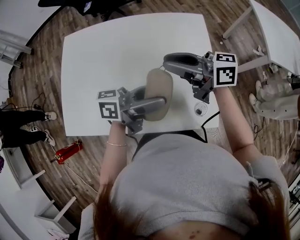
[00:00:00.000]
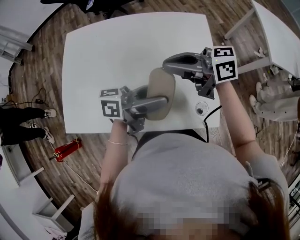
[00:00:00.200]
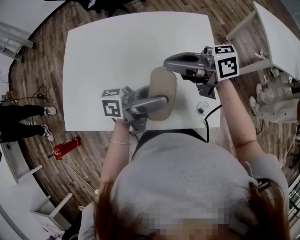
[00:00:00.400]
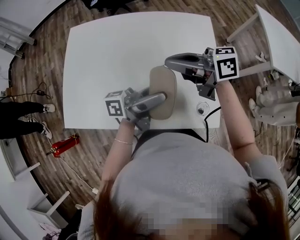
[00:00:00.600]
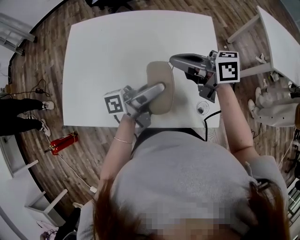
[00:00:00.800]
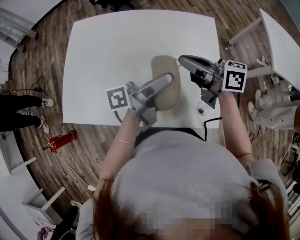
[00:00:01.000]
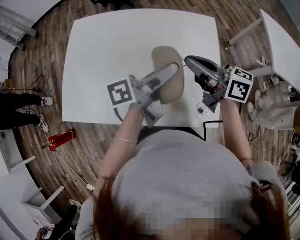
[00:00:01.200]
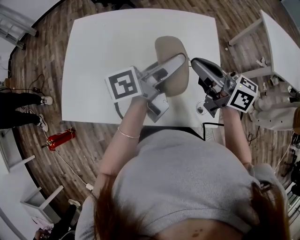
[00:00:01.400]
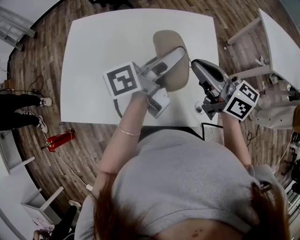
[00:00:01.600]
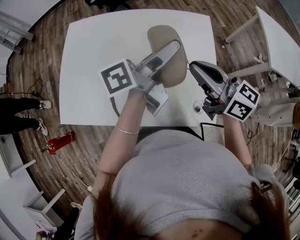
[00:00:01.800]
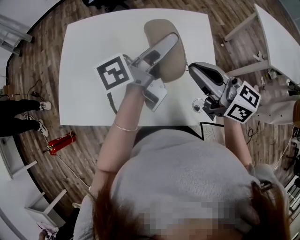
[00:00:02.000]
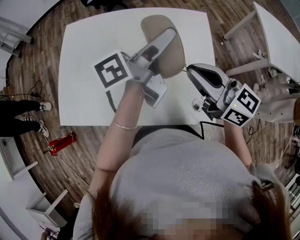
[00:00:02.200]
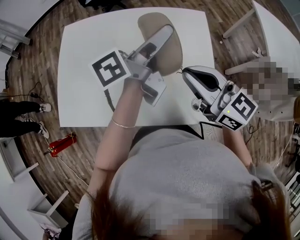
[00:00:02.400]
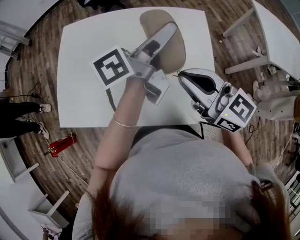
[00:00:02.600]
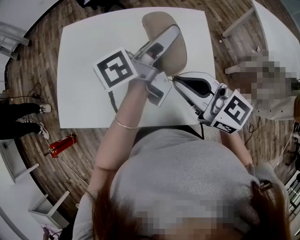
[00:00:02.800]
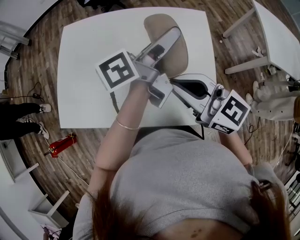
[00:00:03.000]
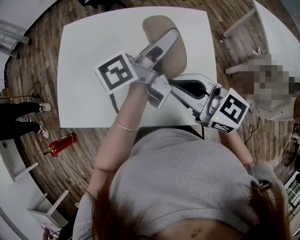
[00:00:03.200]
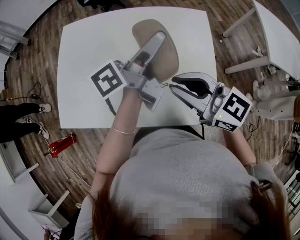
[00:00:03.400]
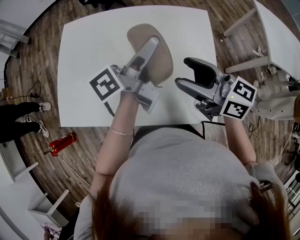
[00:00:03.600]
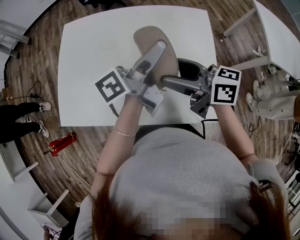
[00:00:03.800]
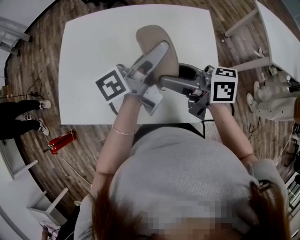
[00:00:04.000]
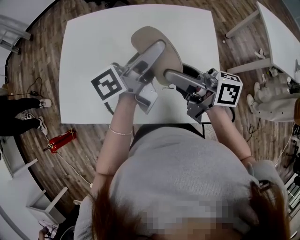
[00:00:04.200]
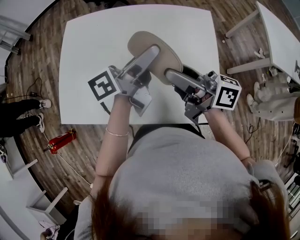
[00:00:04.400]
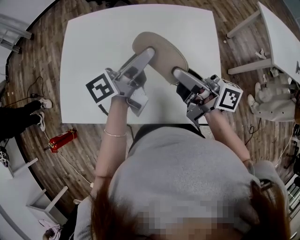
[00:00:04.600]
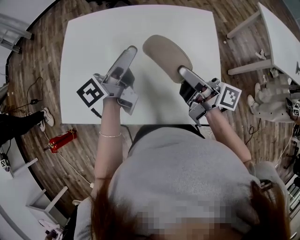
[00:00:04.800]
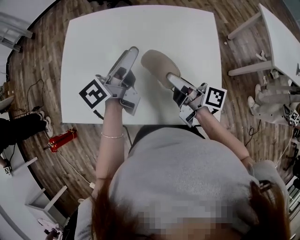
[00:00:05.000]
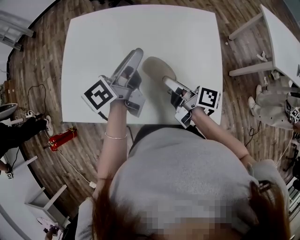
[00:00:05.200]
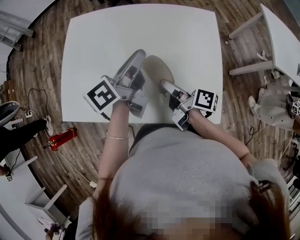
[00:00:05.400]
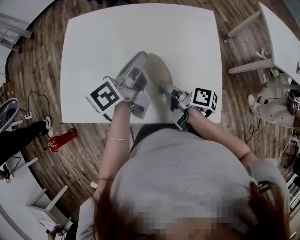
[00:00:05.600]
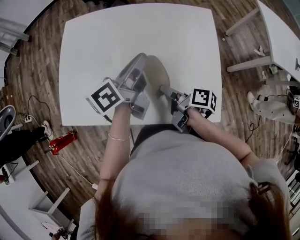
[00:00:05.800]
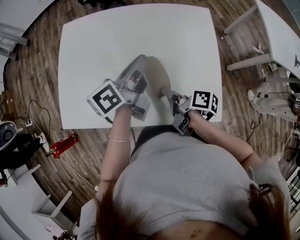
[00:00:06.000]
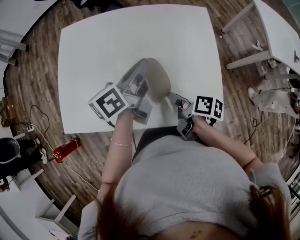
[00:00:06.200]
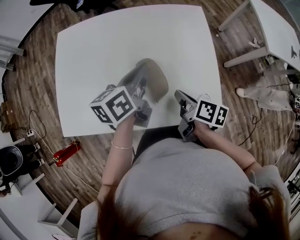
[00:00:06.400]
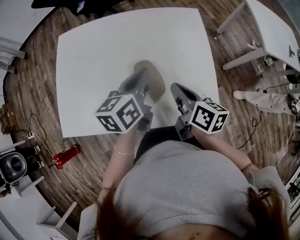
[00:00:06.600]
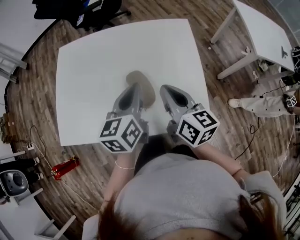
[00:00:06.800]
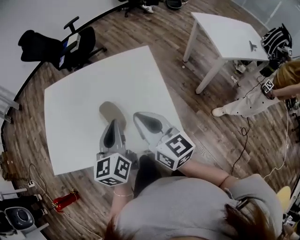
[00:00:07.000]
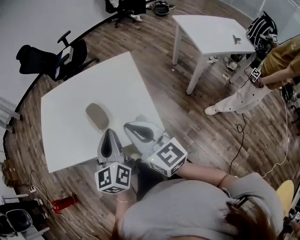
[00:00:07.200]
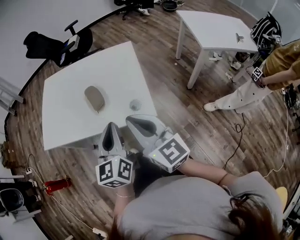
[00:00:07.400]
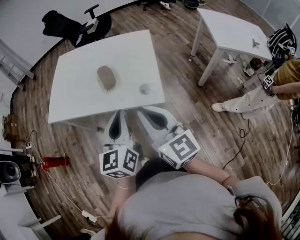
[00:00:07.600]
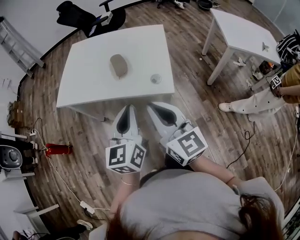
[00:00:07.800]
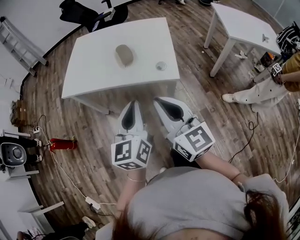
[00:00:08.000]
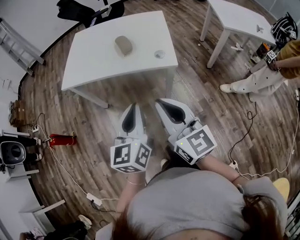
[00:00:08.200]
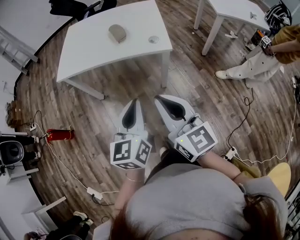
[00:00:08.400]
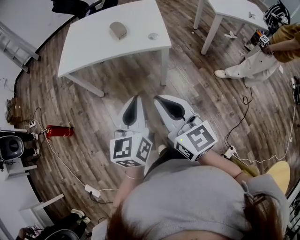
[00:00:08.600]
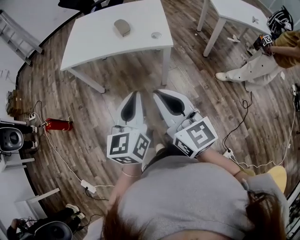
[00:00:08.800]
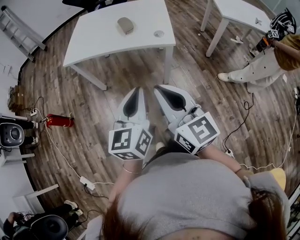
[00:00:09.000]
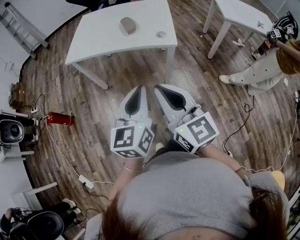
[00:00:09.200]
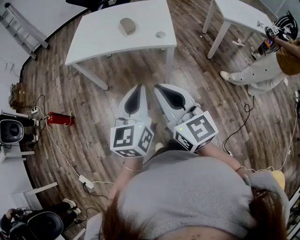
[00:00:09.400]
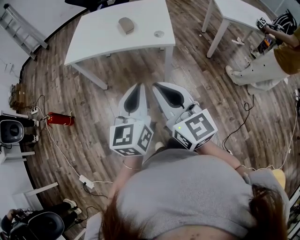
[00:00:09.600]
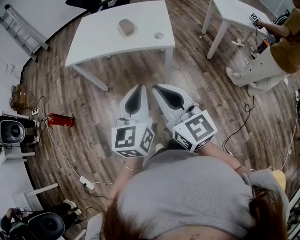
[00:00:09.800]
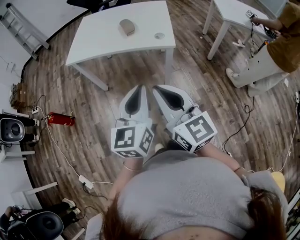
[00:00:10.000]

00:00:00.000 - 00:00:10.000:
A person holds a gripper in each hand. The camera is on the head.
00:00:00.000 - 00:00:01.400: The left gripper moves approximately 10 cm, and swivels about 30 degrees. Meanwhile the right gripper ends up about 5 cm from where it was.
00:00:01.400 - 00:00:02.800: The right gripper goes some 5 cm backward, and rotates roughly 30 degrees, while the left gripper travels forward by approximately 5 cm.
00:00:02.800 - 00:00:04.200: The right gripper rotates around the line of its fingers by some 40 degrees, clockwise from behind, and opens its fingers; the left gripper travels to the left by about 5 cm.
00:00:04.200 - 00:00:05.800: The right gripper is displaced downward by some 20 cm, and tips its fingers downward by roughly 30 degrees. Meanwhile the left gripper shifts some 5 cm downward and to the left, and closes its fingers.
00:00:05.800 - 00:00:07.200: The right gripper moves upward, backward and to the right, approximately 30 cm, rolls counterclockwise, seen from behind, by roughly 70 degrees, and closes. Meanwhile the left gripper shifts approximately 25 cm backward and to the right, and rotates around the line of its fingers by about 40 degrees, clockwise from behind.
00:00:07.200 - 00:00:08.600: Both grippers travel together backward, about 35 cm.
00:00:08.600 - 00:00:10.000: The grippers stay close to where they were, moving slightly.

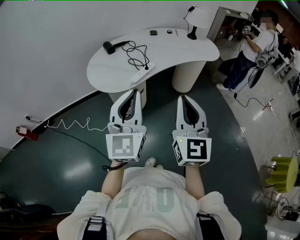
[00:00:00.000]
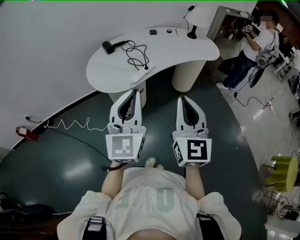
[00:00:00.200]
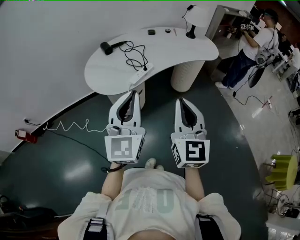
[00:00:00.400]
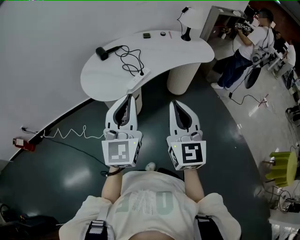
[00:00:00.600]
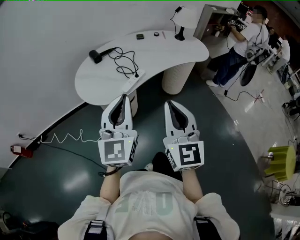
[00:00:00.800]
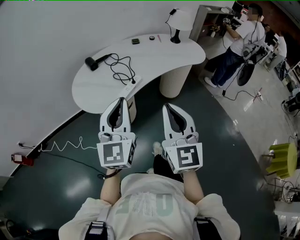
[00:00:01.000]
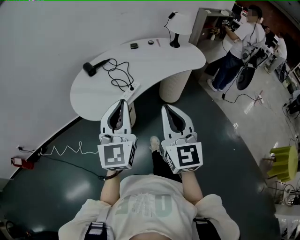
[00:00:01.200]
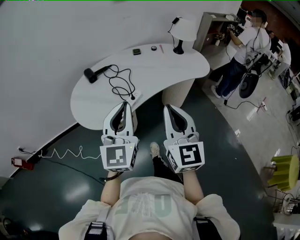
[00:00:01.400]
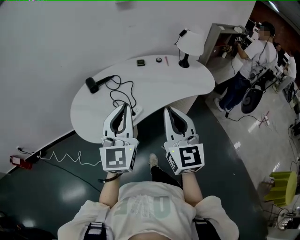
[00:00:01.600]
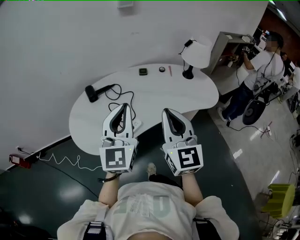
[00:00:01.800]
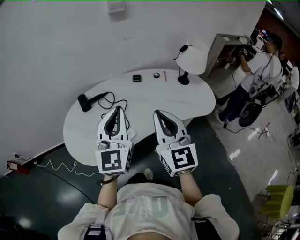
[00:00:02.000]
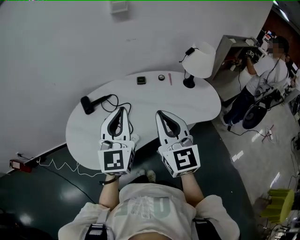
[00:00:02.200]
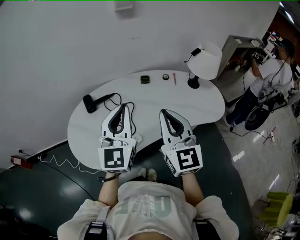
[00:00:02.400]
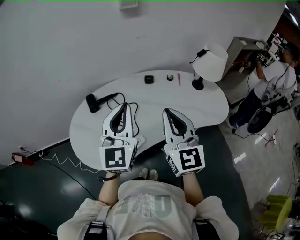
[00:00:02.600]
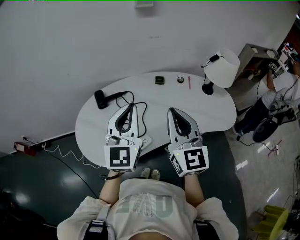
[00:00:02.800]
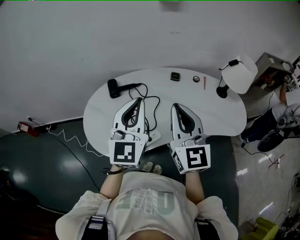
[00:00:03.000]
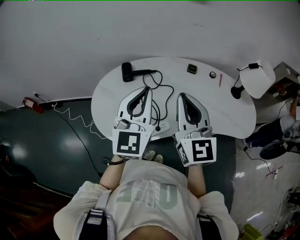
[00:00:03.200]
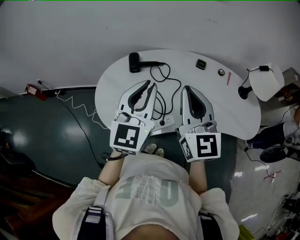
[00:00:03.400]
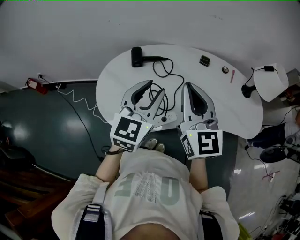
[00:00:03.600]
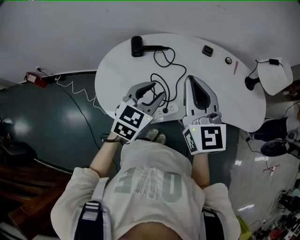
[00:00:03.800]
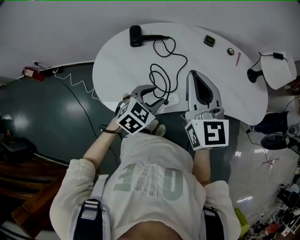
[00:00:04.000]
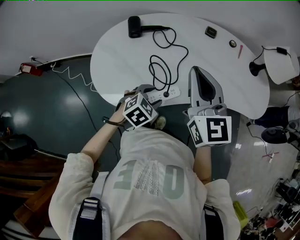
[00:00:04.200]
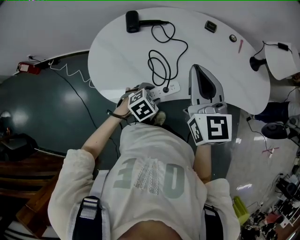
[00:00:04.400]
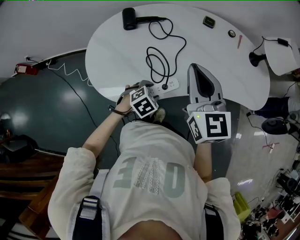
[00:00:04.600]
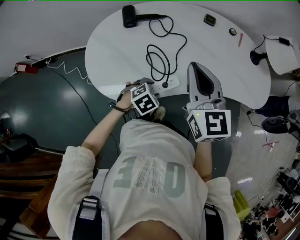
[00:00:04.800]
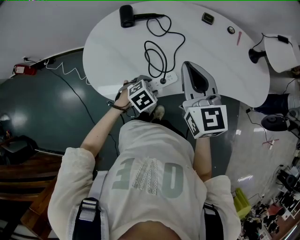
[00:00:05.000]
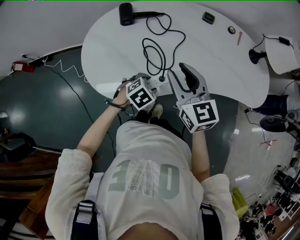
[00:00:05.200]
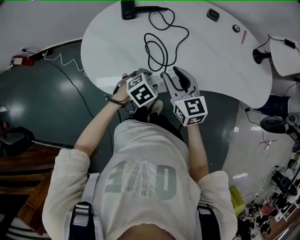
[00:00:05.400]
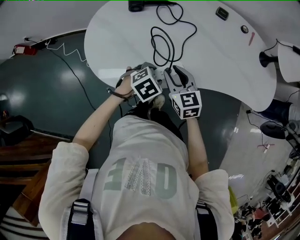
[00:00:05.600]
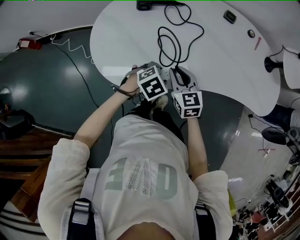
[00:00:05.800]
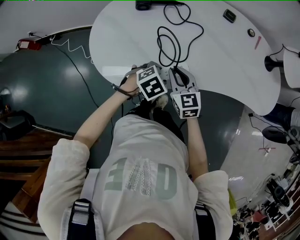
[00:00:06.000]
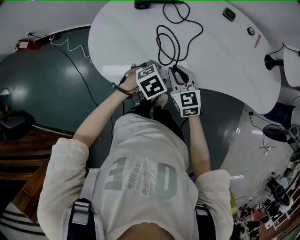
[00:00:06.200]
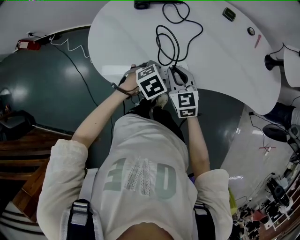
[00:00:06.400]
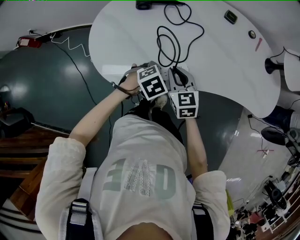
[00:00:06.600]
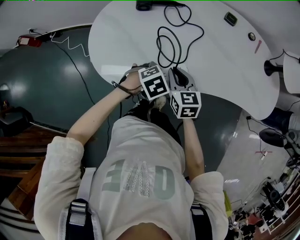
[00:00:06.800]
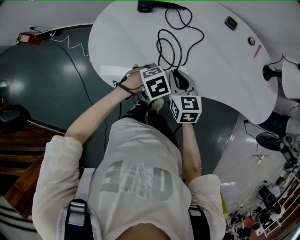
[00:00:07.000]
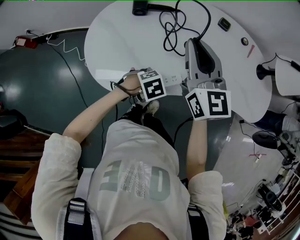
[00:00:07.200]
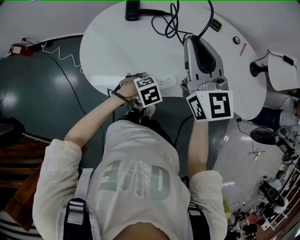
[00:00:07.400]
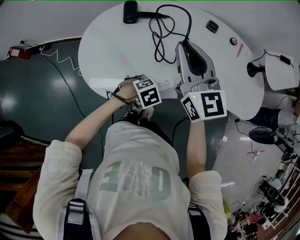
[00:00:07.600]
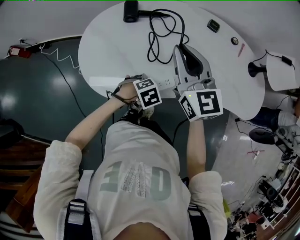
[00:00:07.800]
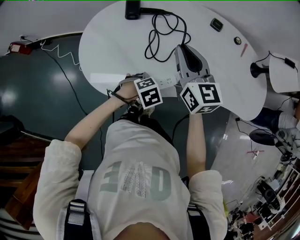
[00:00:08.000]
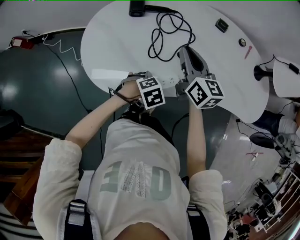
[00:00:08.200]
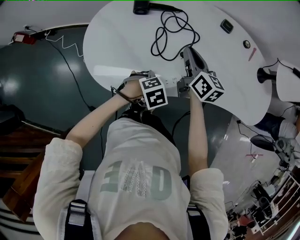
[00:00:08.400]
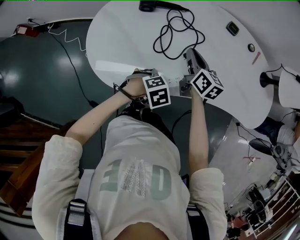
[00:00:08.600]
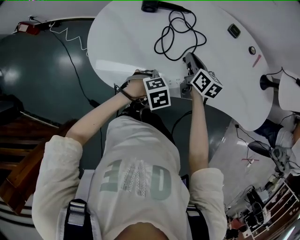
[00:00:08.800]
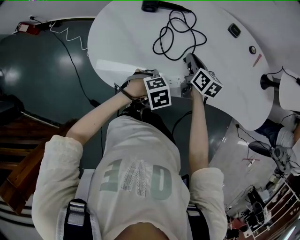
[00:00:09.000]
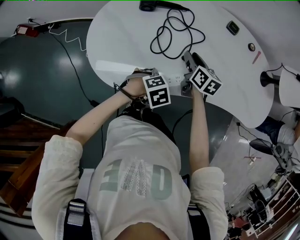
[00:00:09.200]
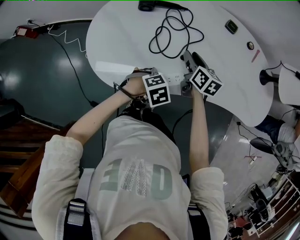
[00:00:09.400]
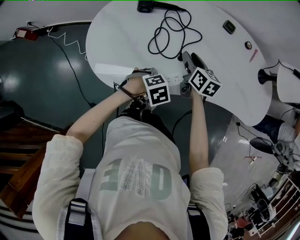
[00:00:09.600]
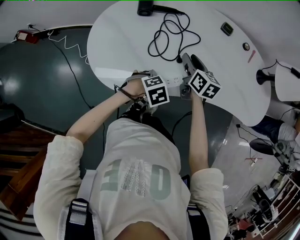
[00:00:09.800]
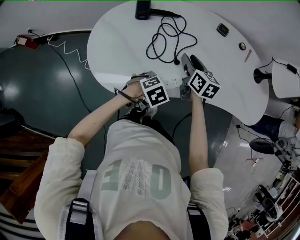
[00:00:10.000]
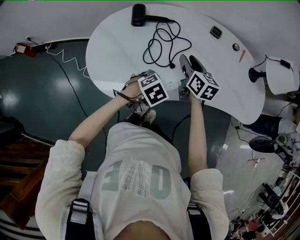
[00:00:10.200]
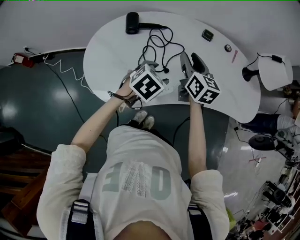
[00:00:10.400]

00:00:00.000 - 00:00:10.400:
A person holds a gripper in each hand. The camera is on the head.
00:00:00.000 - 00:00:01.400: Both grippers move forward, approximately 15 cm.
00:00:01.400 - 00:00:03.000: The two grippers go approximately 30 cm forward. The right gripper turns by about 20 degrees.
00:00:03.000 - 00:00:04.400: The left gripper travels downward by roughly 35 cm, tips its fingers downward by about 60 degrees, and opens up. Meanwhile the right gripper shifts roughly 10 cm downward and to the left.
00:00:04.400 - 00:00:06.000: The right gripper travels downward by approximately 25 cm, turns by roughly 20 degrees, and opens, then closes once more.
00:00:06.000 - 00:00:07.400: The right gripper moves upward, roughly 25 cm, and rotates some 30 degrees.
00:00:07.400 - 00:00:09.000: The right gripper shifts approximately 30 cm downward, and points its fingers approximately 30 degrees further downward.
00:00:09.000 - 00:00:10.400: Both grippers move upward, some 15 cm. The left gripper changes its angle by approximately 30 degrees. The right gripper swivels roughly 20 degrees, and opens up.

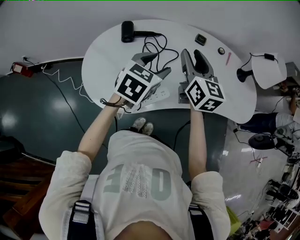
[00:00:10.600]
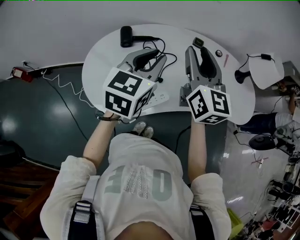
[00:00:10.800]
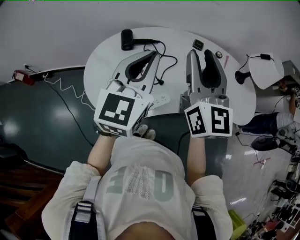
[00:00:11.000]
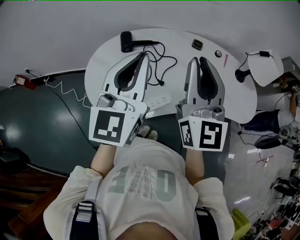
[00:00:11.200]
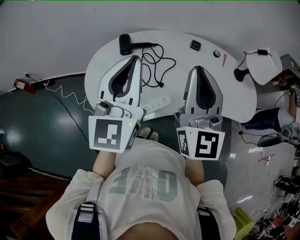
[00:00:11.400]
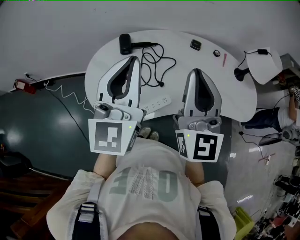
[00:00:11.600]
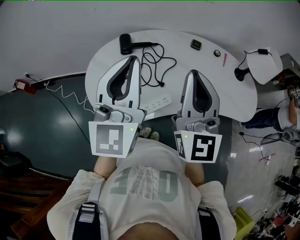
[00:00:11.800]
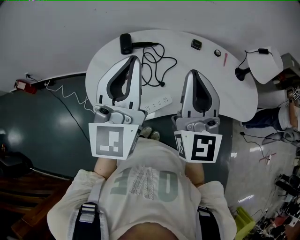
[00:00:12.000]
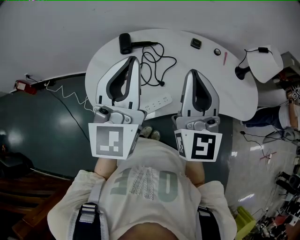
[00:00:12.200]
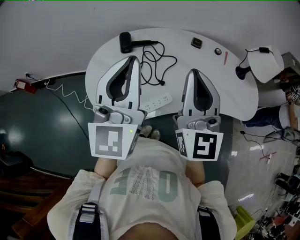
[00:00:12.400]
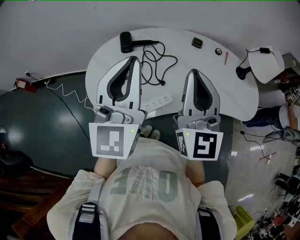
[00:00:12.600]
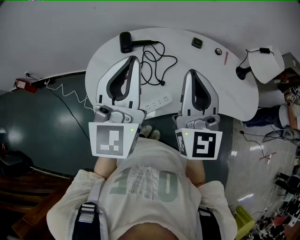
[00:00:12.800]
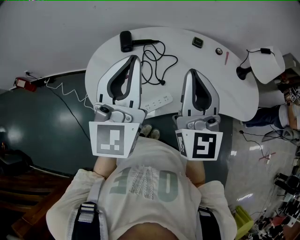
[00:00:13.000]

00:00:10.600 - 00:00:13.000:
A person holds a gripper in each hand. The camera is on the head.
00:00:10.600 - 00:00:11.800: The left gripper travels upward by approximately 20 cm, points its fingers approximately 40 degrees further upward, and closes its fingers, while the right gripper travels upward and backward by approximately 20 cm, swivels approximately 30 degrees, and closes.
00:00:11.800 - 00:00:13.000: The grippers make only small movements.
